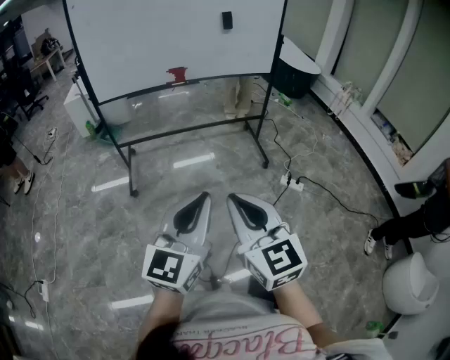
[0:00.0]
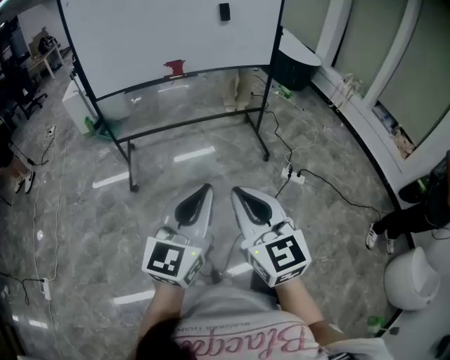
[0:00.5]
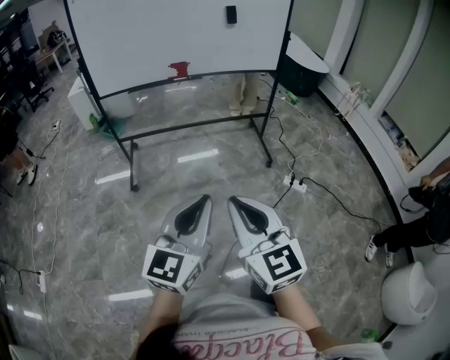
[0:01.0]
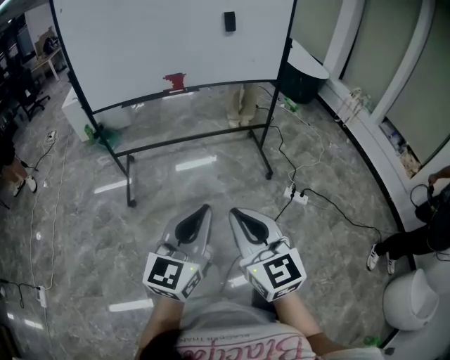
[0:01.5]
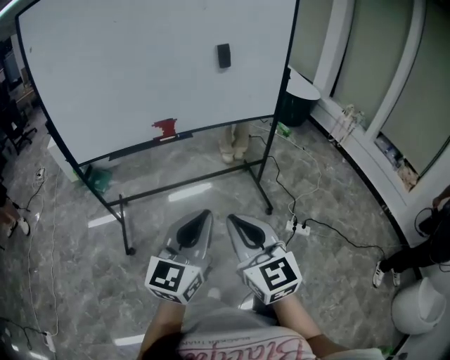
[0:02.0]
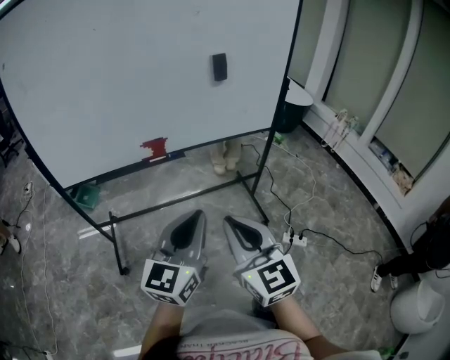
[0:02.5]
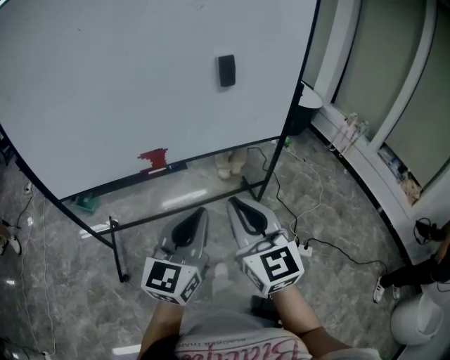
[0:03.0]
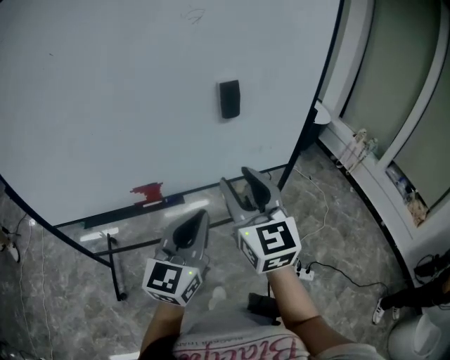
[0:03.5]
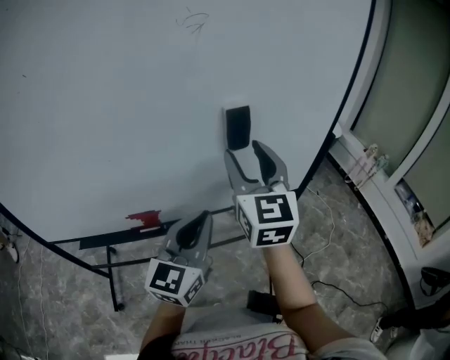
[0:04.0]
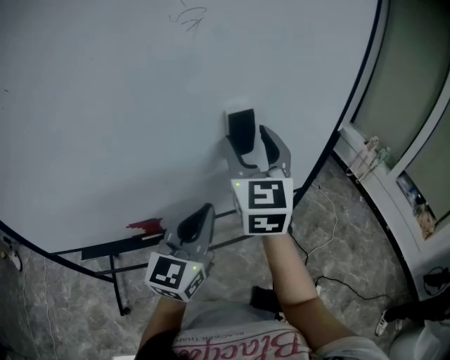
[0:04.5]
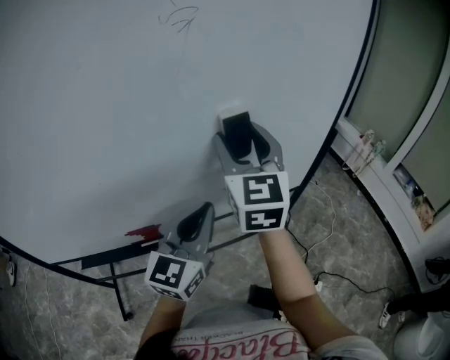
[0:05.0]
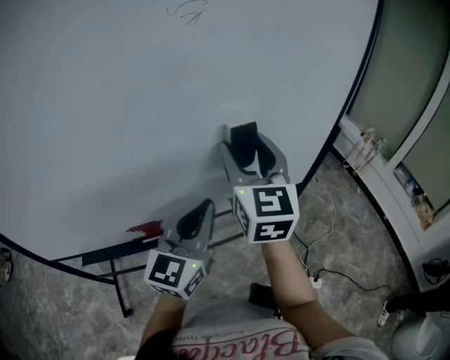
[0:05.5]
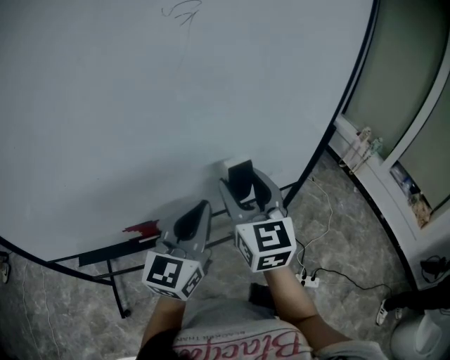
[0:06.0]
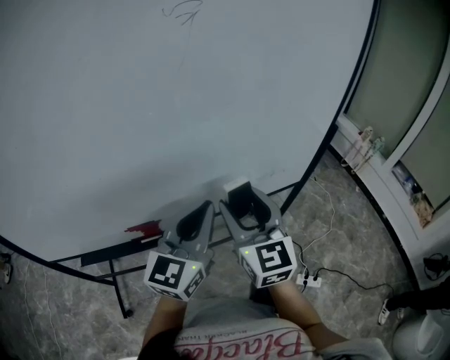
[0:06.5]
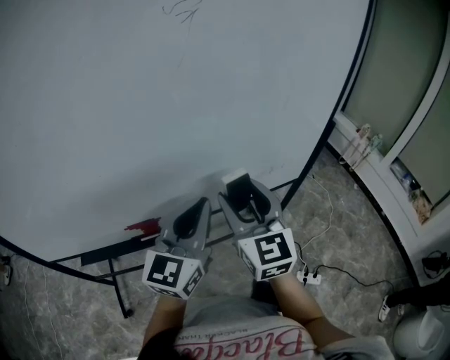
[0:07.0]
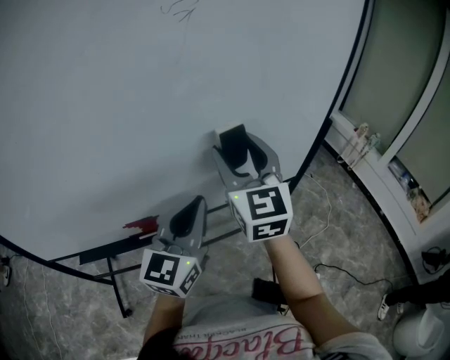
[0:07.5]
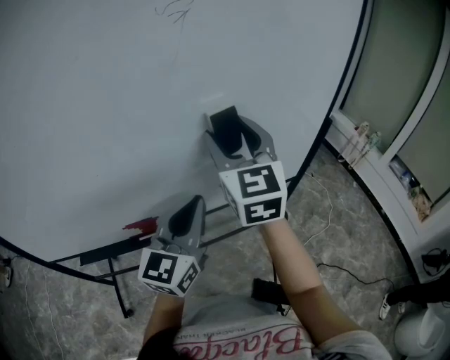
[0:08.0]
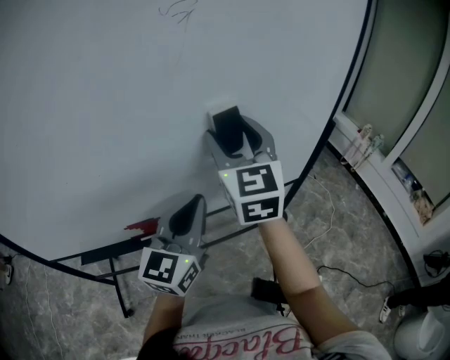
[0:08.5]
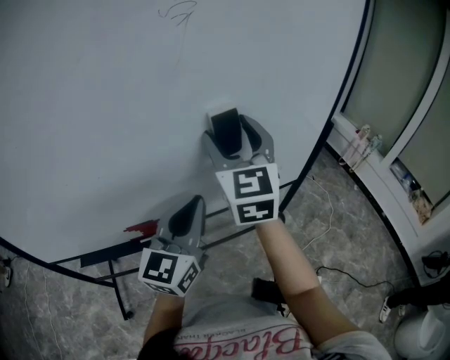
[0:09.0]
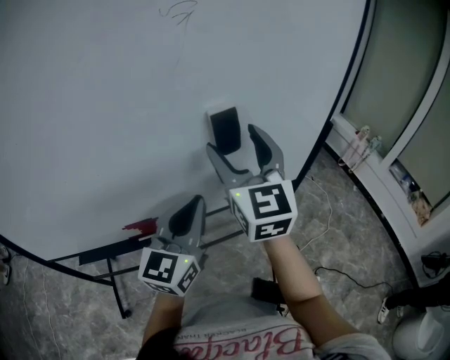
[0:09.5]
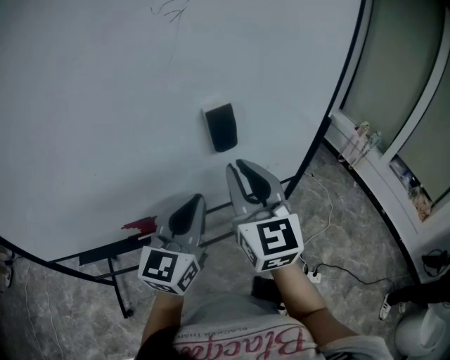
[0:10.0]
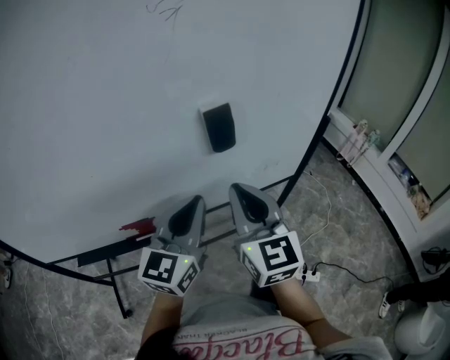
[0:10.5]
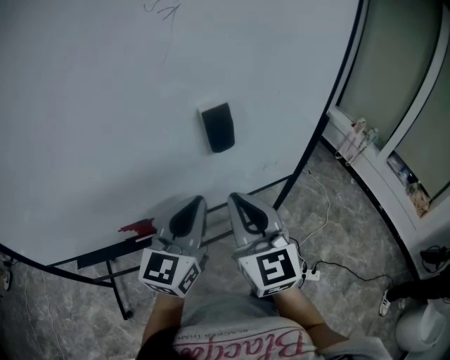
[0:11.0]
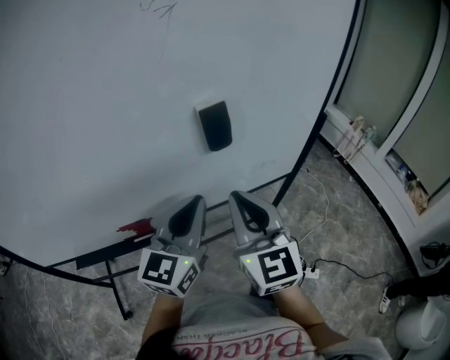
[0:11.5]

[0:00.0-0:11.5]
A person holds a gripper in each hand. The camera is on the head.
0:00.0 to 0:02.0: The grippers both shift forward by approximately 25 cm.
0:02.0 to 0:04.0: The grippers both shift forward by roughly 40 cm. The right gripper opens up.
0:04.0 to 0:06.0: The right gripper is displaced downward by about 5 cm.
0:06.0 to 0:07.5: The right gripper shifts some 5 cm upward.
0:07.5 to 0:09.5: The grippers move only a little.
0:09.5 to 0:11.5: The right gripper moves downward and backward, roughly 10 cm, and closes up.

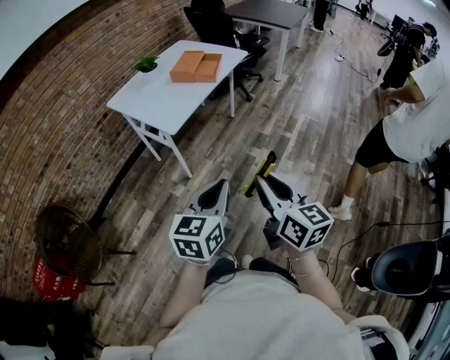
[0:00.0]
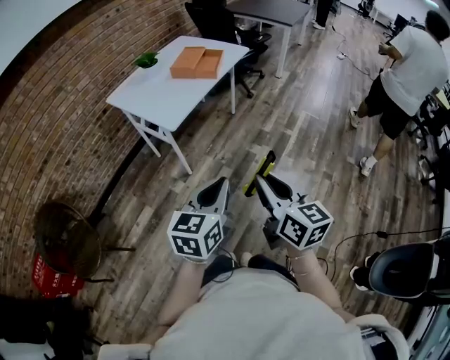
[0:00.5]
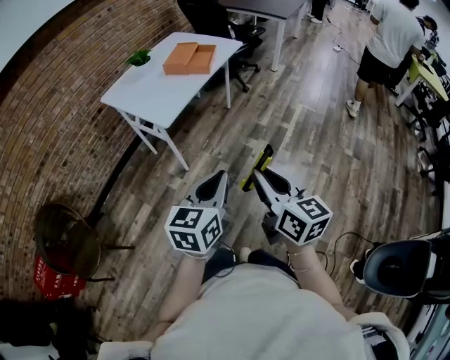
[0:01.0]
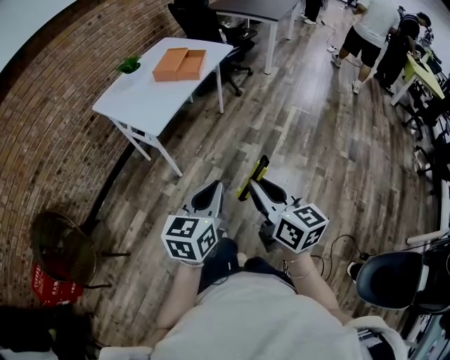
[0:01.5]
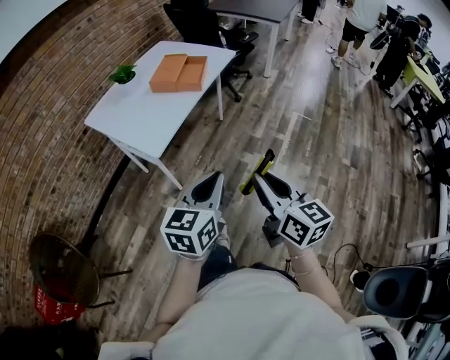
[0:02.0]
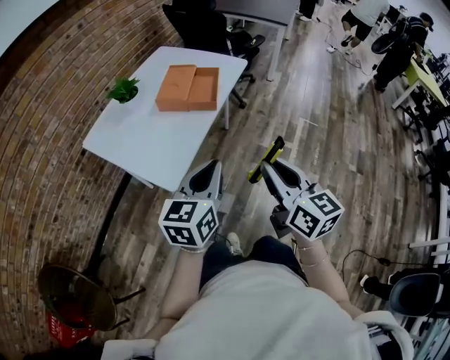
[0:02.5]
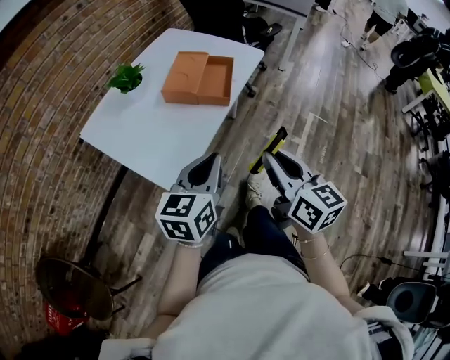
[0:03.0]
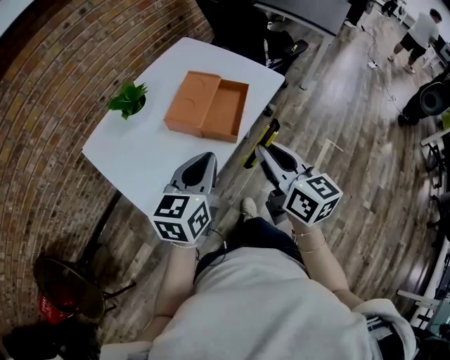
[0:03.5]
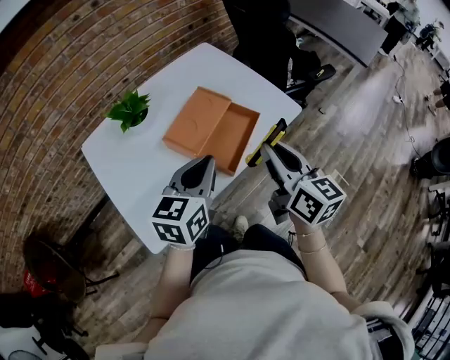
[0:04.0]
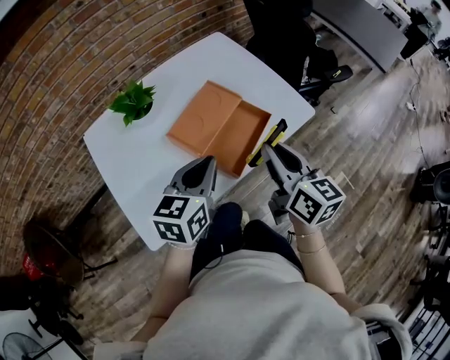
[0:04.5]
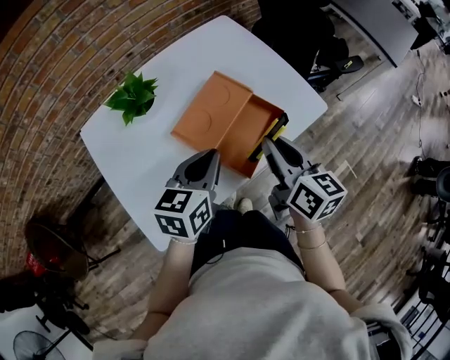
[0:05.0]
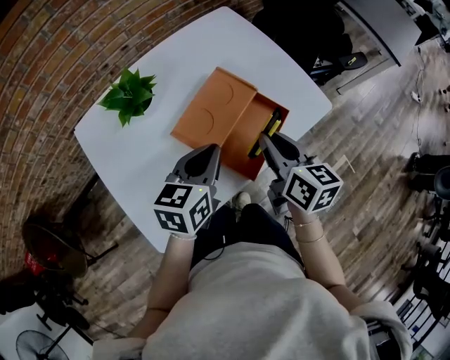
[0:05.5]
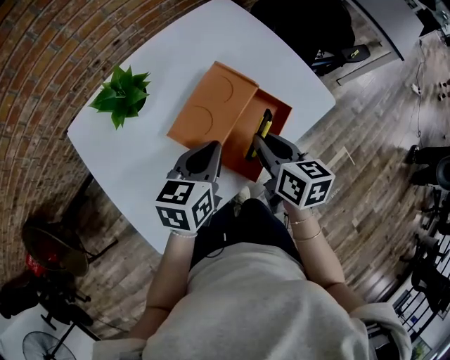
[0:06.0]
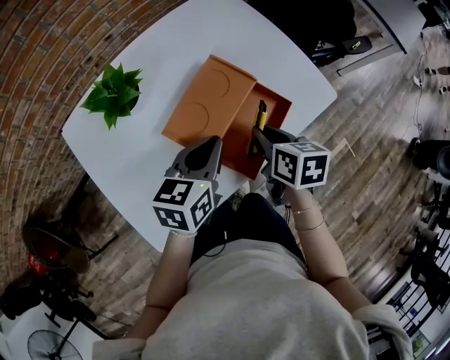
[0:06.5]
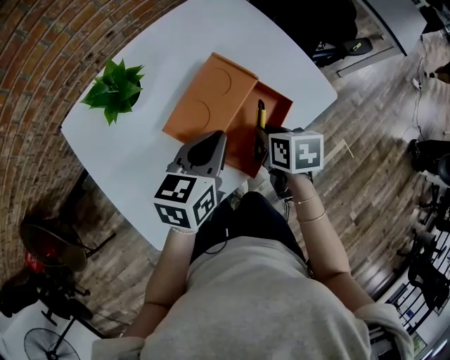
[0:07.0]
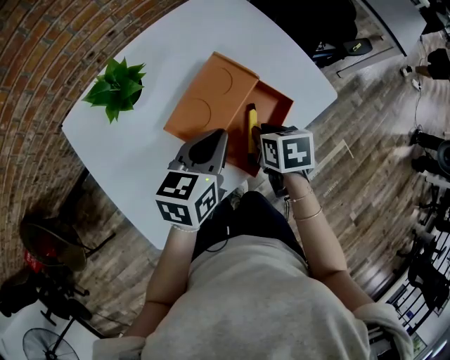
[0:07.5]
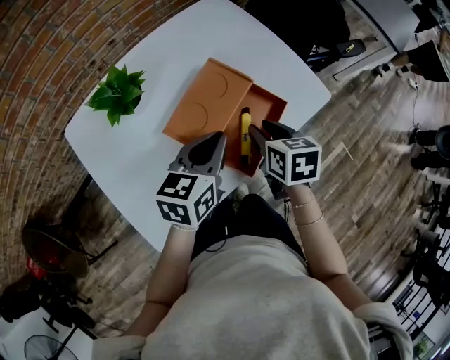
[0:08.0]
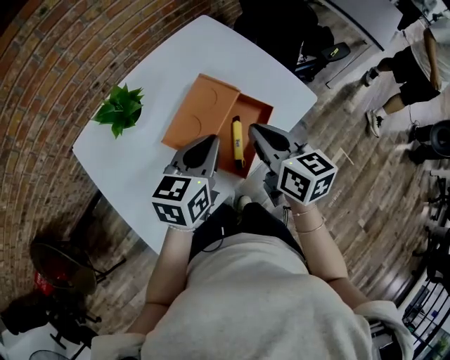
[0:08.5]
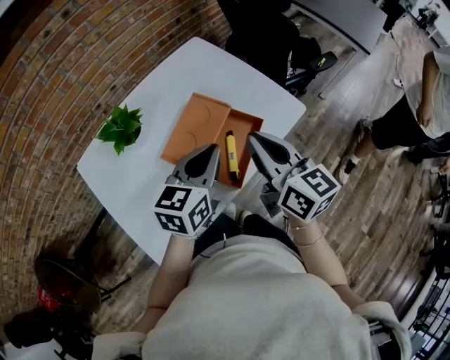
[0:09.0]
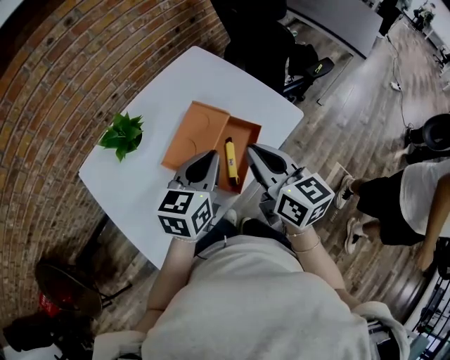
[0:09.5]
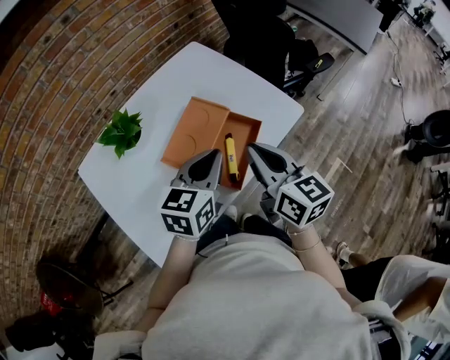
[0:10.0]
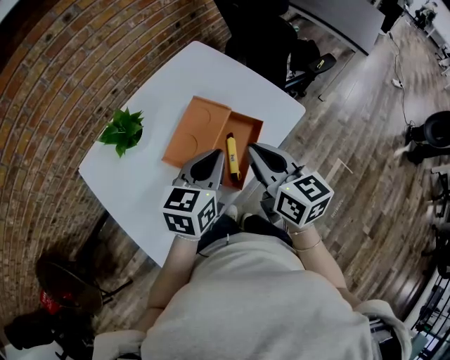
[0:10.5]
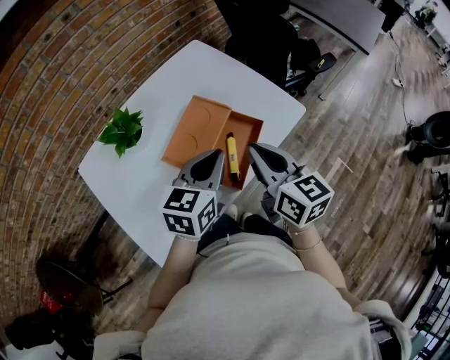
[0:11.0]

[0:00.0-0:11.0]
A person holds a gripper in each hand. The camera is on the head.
0:00.0 to 0:02.0: The grippers both shift forward by about 15 cm.
0:02.0 to 0:03.5: Both grippers are carried forward, about 50 cm.
0:03.5 to 0:05.5: The two grippers go about 20 cm forward. The right gripper rotates approximately 20 degrees.
0:05.5 to 0:07.5: The right gripper moves downward, roughly 10 cm, and tips its fingers downward by roughly 40 degrees.
0:07.5 to 0:09.0: The left gripper is displaced upward by some 10 cm. The right gripper travels upward by some 20 cm, and angles its fingers upward, by some 50 degrees.
0:09.0 to 0:11.0: The grippers stay close to where they were, moving slightly.

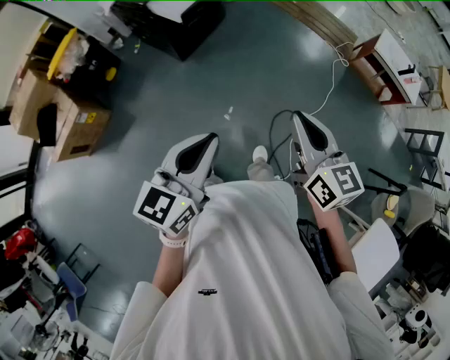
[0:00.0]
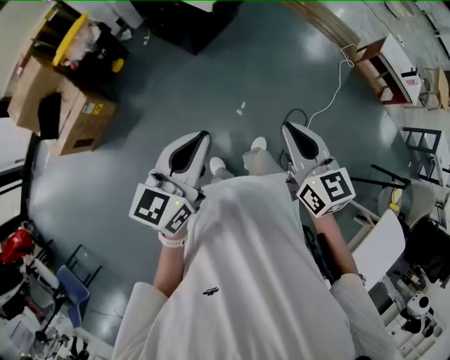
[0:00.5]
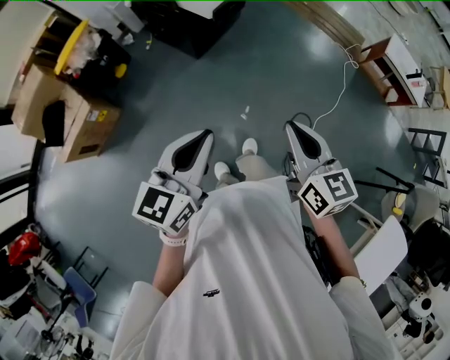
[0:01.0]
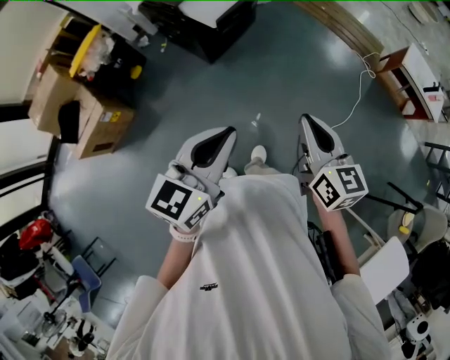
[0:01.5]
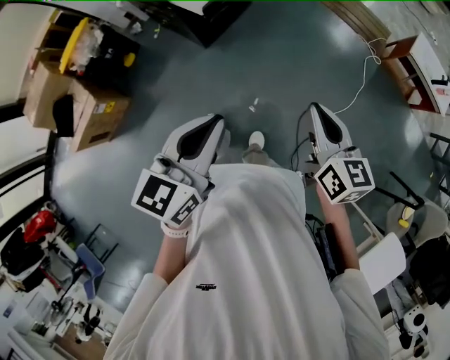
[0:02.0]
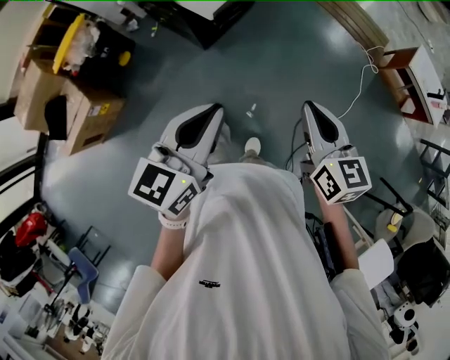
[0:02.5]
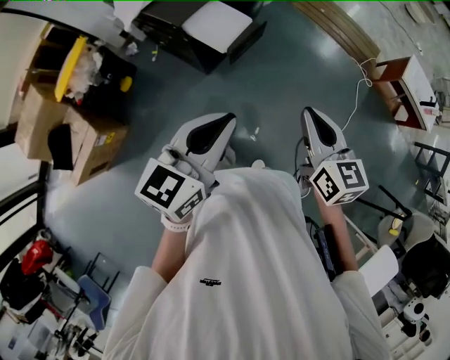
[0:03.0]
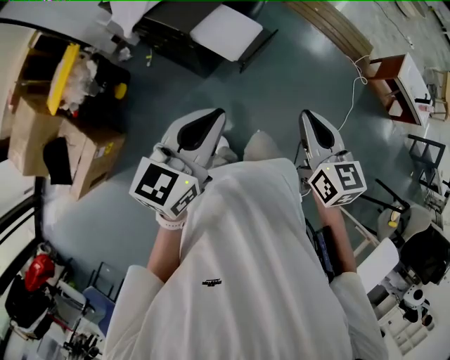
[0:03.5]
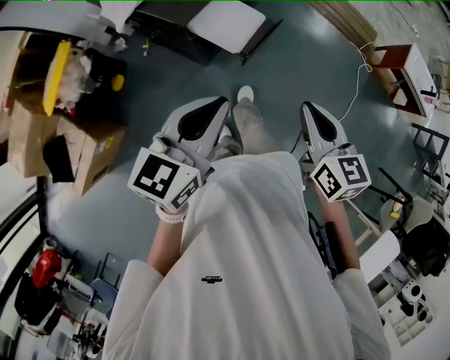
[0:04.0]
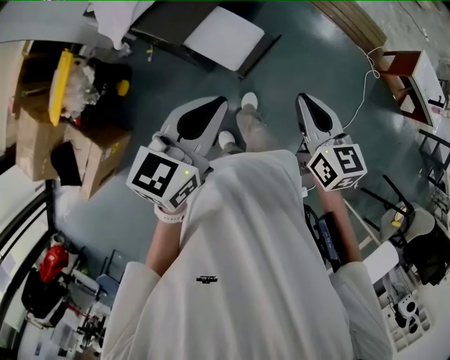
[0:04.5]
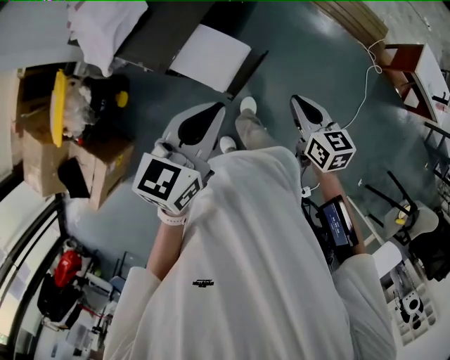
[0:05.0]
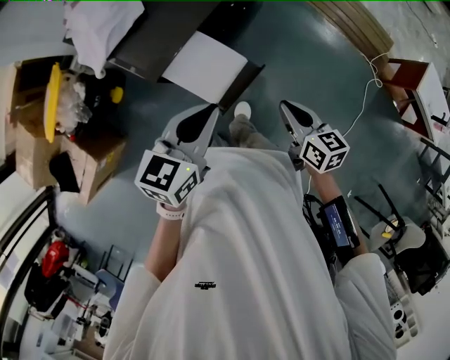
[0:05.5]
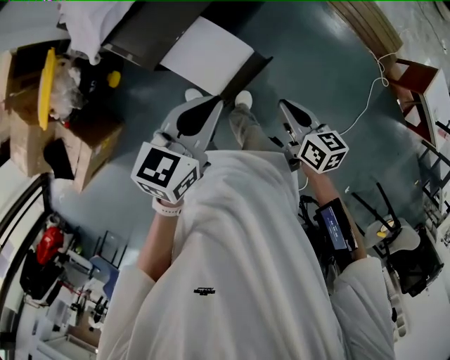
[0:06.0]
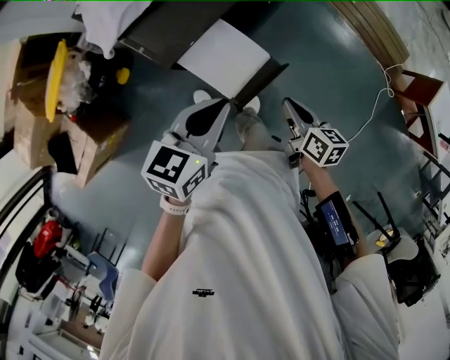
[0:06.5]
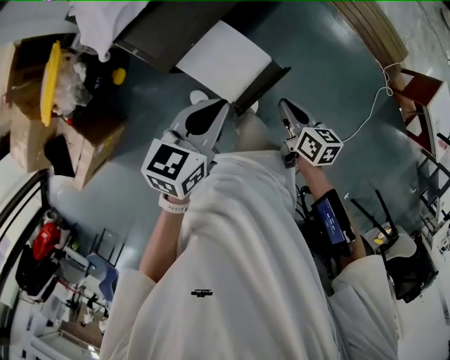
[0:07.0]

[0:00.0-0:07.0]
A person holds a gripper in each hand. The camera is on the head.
0:00.0 to 0:02.0: Both grippers travel together forward, approximately 10 cm. The left gripper reaches approximately 15 cm to the left, then returns.
0:02.0 to 0:03.5: Both grippers travel together to the left and forward, approximately 25 cm.
0:03.5 to 0:05.0: The right gripper is displaced forward and downward by about 20 cm. Meanwhile the left gripper goes roughly 20 cm forward.
0:05.0 to 0:07.0: Both grippers move downward, approximately 10 cm.
